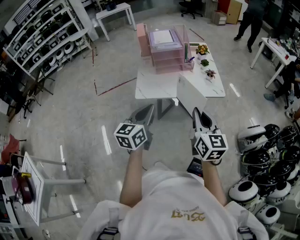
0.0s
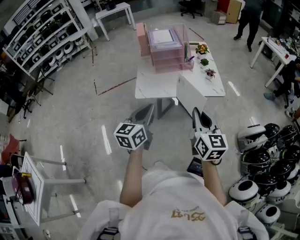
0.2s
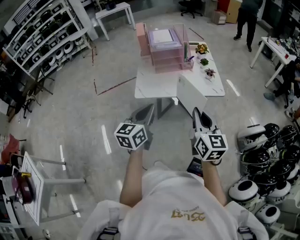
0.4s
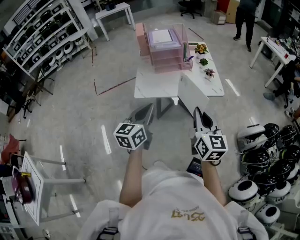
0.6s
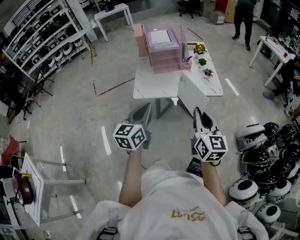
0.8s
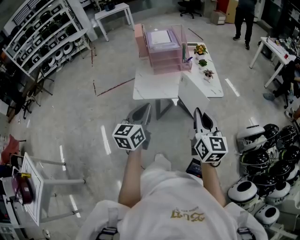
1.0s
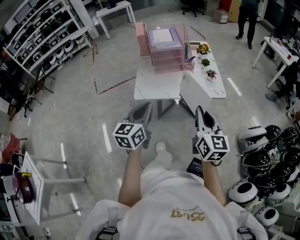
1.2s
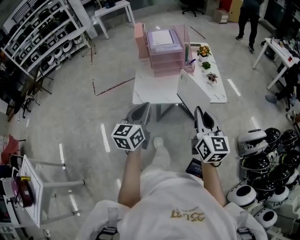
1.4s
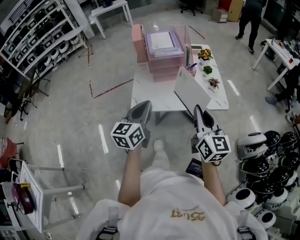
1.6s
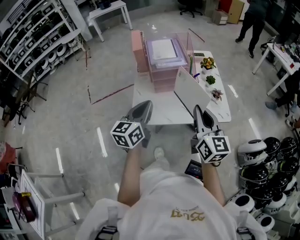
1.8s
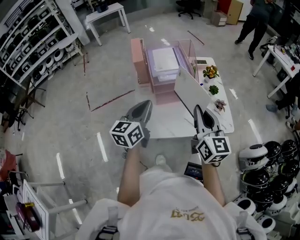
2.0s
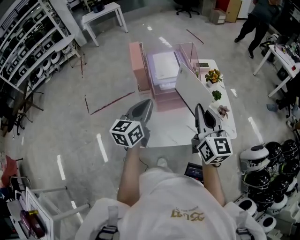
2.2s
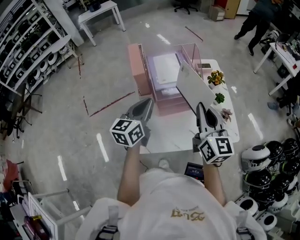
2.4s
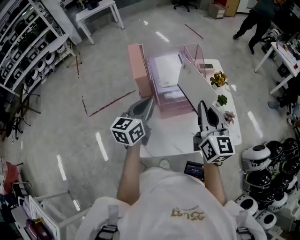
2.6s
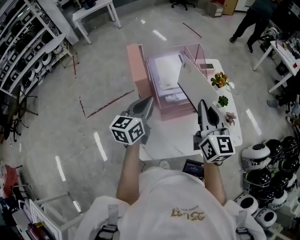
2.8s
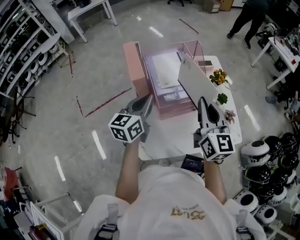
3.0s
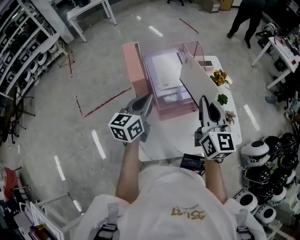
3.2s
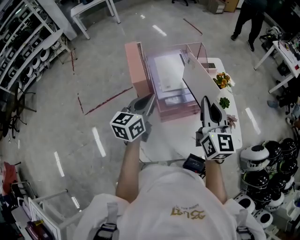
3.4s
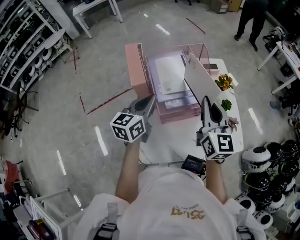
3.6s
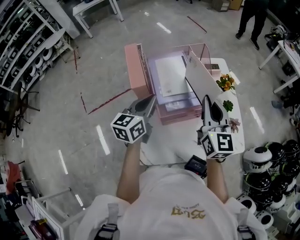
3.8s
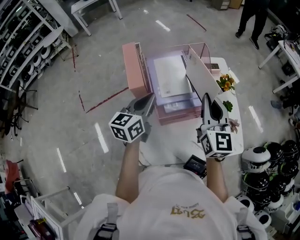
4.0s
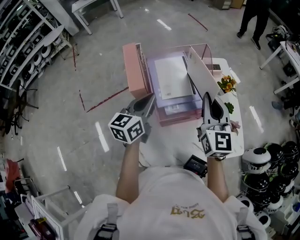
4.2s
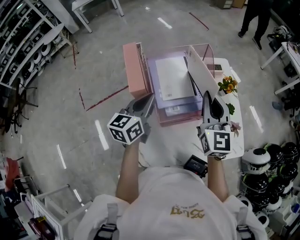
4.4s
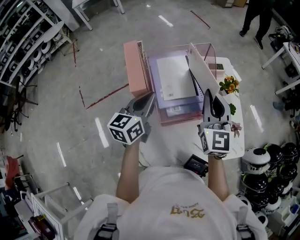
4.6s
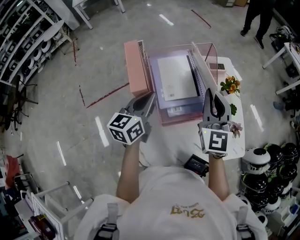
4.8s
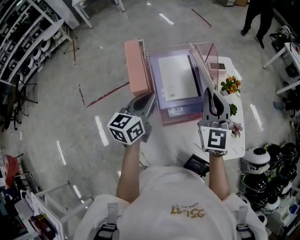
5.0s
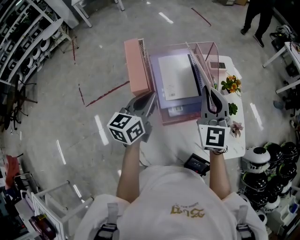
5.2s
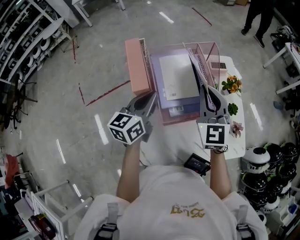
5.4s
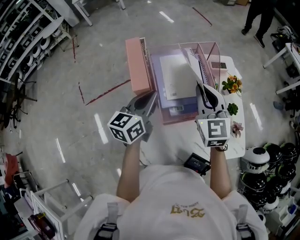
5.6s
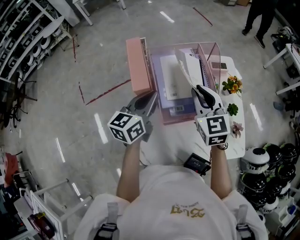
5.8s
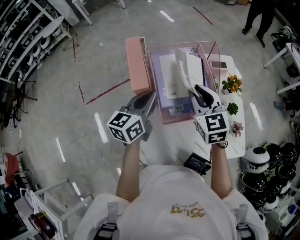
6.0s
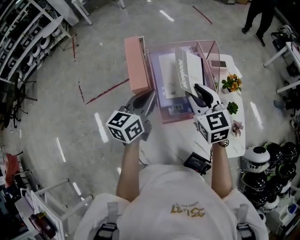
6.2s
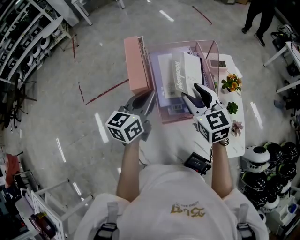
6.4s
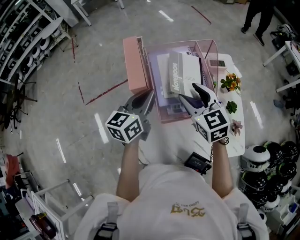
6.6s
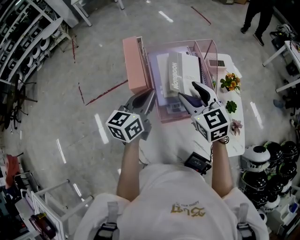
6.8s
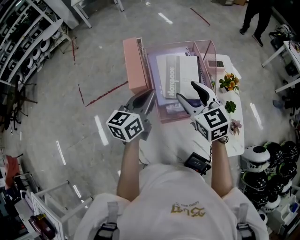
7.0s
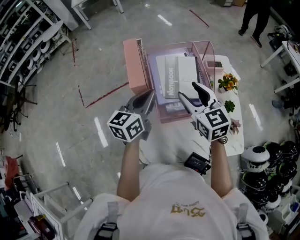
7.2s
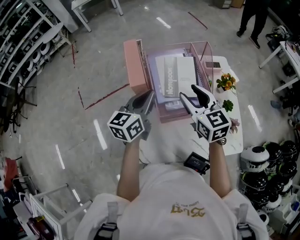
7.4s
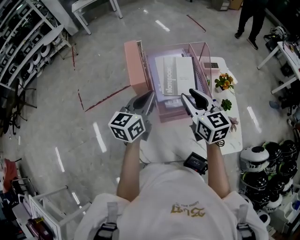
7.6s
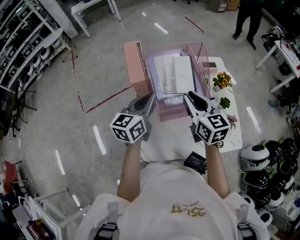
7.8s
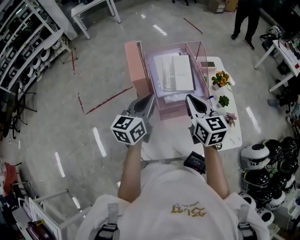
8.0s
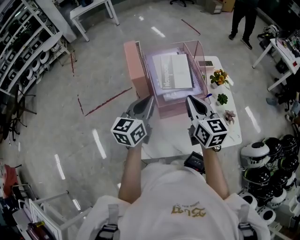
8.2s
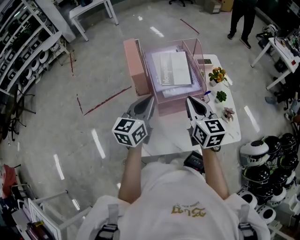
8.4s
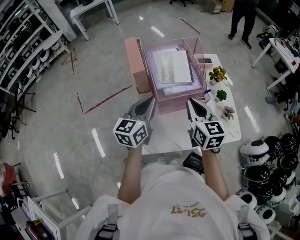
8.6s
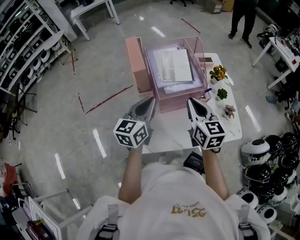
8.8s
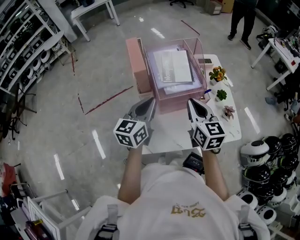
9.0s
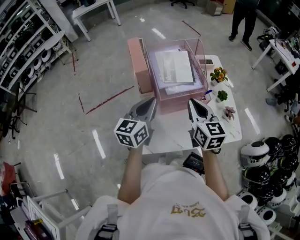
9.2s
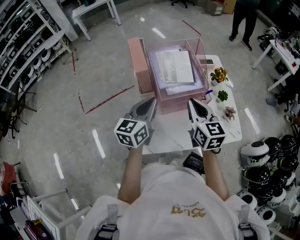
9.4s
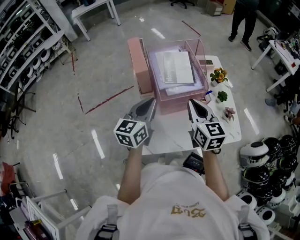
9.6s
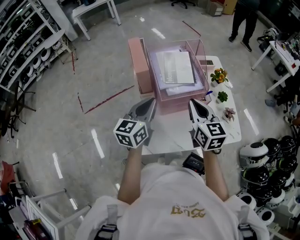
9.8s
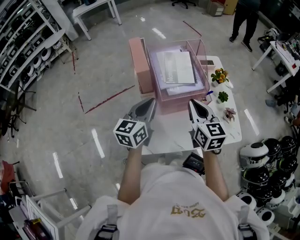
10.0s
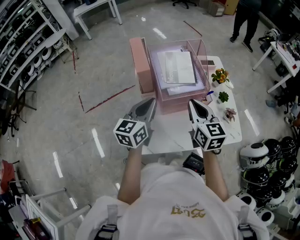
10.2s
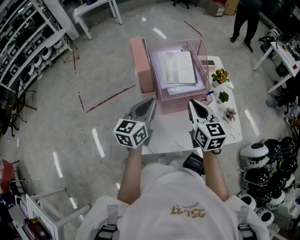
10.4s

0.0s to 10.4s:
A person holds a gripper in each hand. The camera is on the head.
0.0s to 1.4s: Both grippers move forward, roughly 5 cm.
1.4s to 3.0s: Both grippers are carried forward, about 40 cm.
3.0s to 4.4s: The left gripper is displaced forward by about 5 cm. The right gripper is displaced forward by about 10 cm.
4.4s to 6.0s: The right gripper heads to the left and downward, covering approximately 10 cm, and rotates roughly 30 degrees.
6.0s to 7.4s: The right gripper opens up.
7.4s to 9.0s: The two grippers go about 10 cm backward. The right gripper closes up.
9.0s to 10.4s: Both grippers stay about where they are.

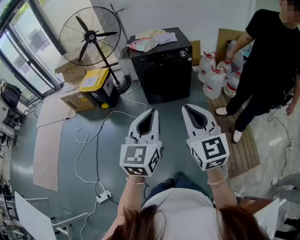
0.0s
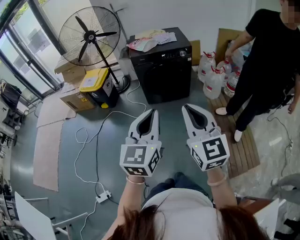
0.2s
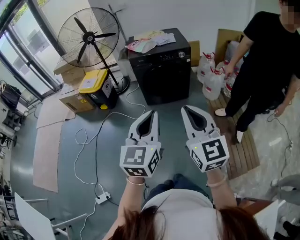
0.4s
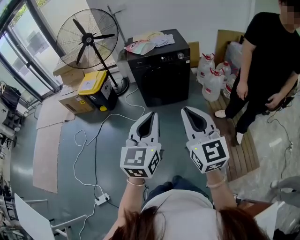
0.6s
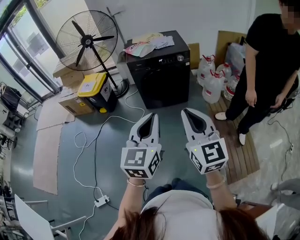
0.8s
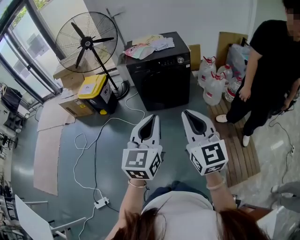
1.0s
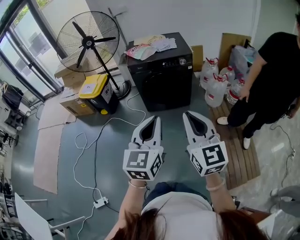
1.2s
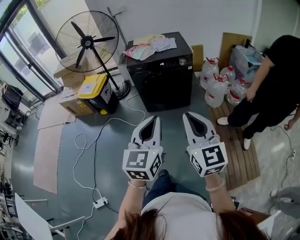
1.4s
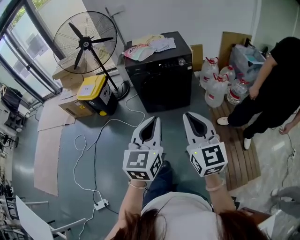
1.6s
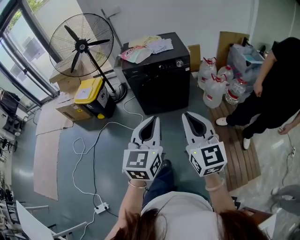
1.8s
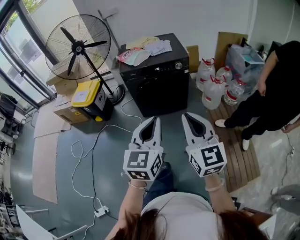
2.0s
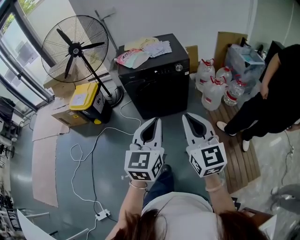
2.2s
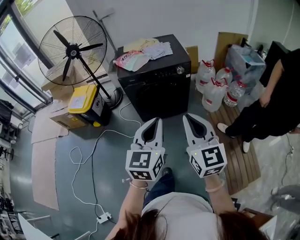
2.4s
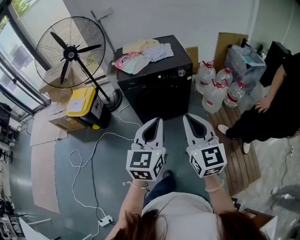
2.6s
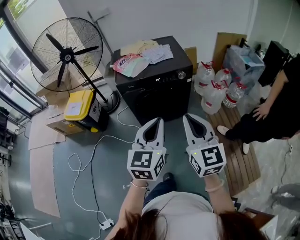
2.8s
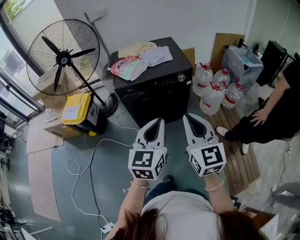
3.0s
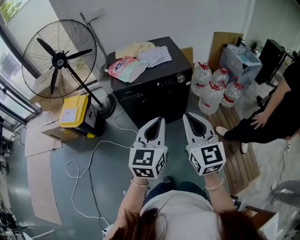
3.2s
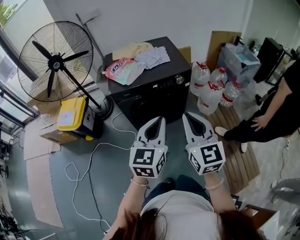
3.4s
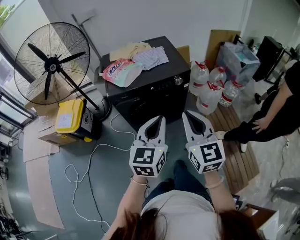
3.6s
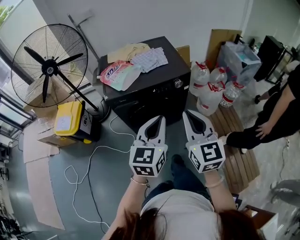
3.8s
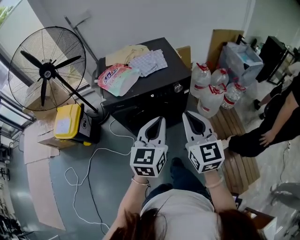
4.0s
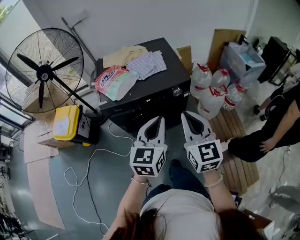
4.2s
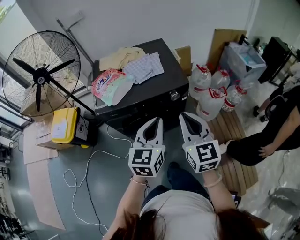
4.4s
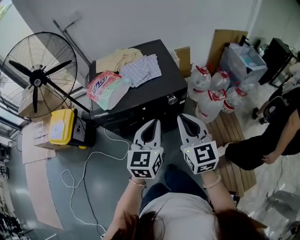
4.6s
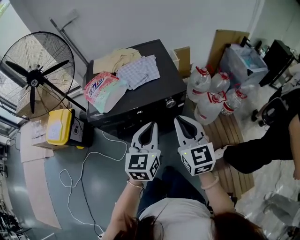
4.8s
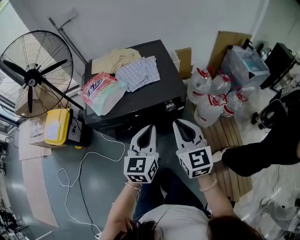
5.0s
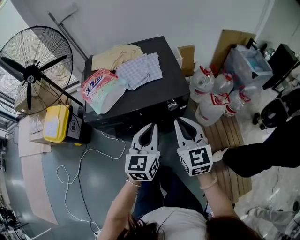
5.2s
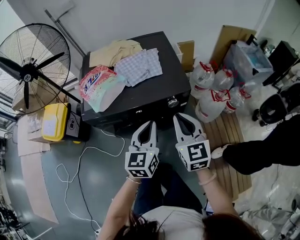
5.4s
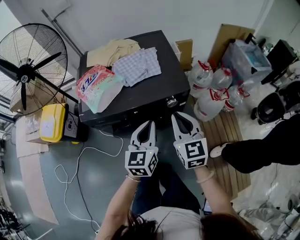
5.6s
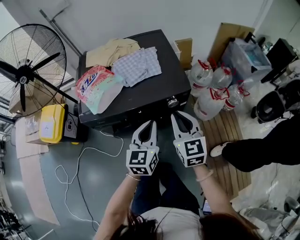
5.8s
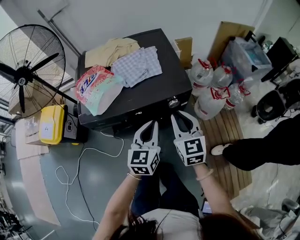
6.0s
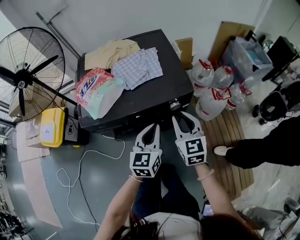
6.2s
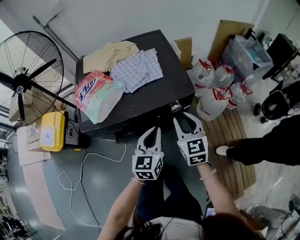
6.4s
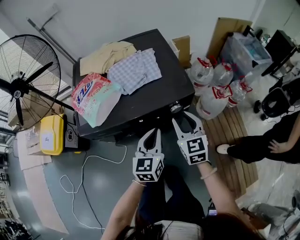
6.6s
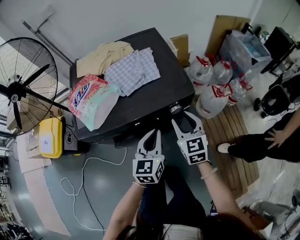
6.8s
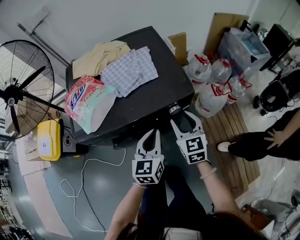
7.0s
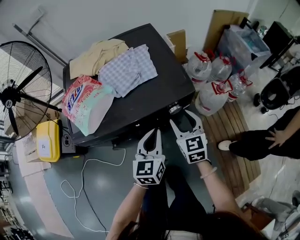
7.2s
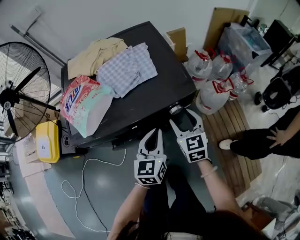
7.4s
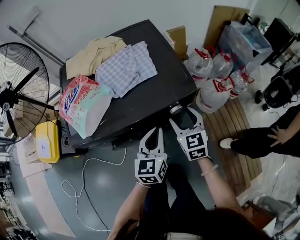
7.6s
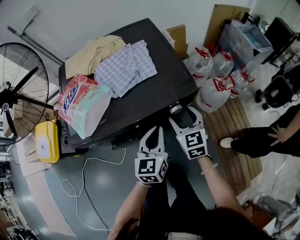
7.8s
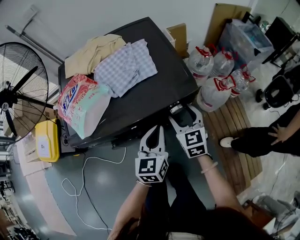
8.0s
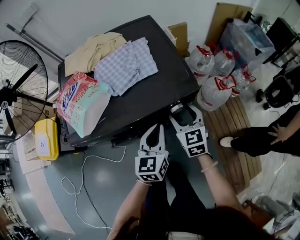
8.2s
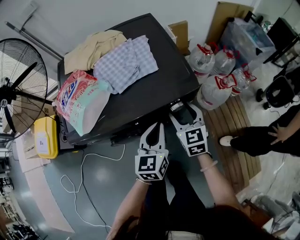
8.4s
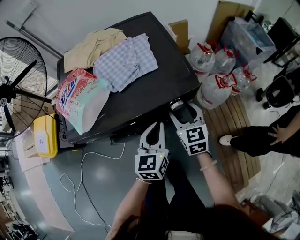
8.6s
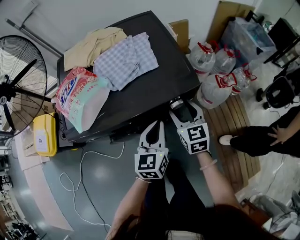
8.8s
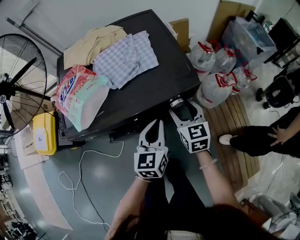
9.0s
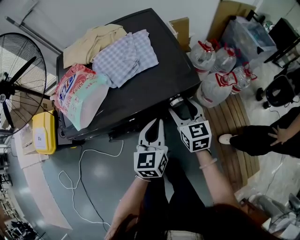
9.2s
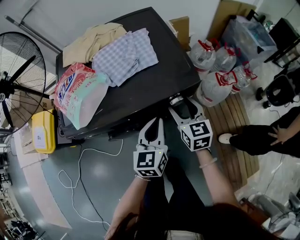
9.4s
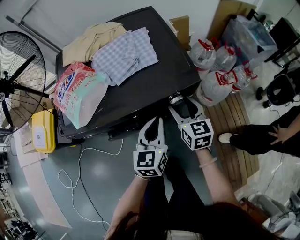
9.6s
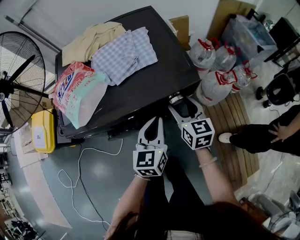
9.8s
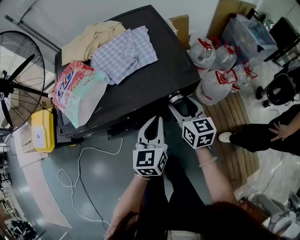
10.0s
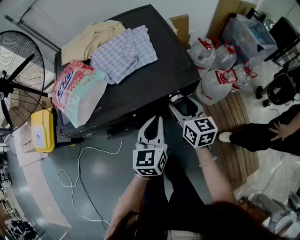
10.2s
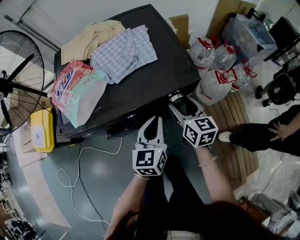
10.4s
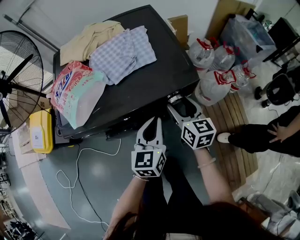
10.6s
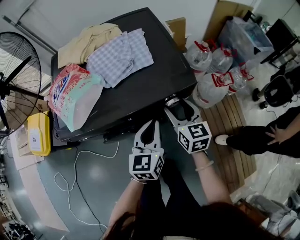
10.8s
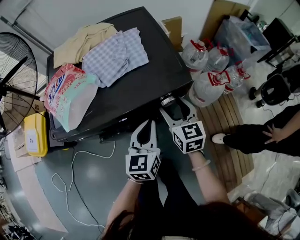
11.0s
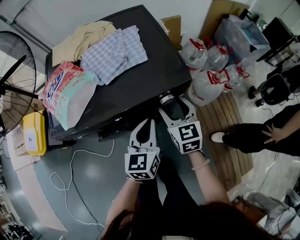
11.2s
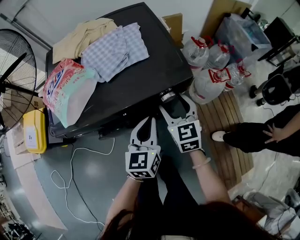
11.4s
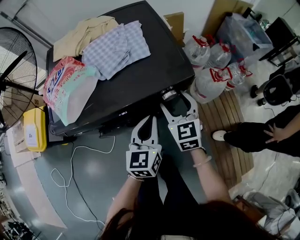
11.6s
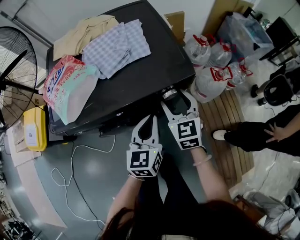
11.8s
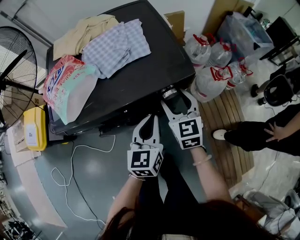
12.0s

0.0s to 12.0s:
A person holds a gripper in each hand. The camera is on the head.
0.0s to 1.6s: The grippers both shift forward and to the right by approximately 15 cm.
1.6s to 3.0s: Both grippers move forward, some 25 cm.
3.0s to 4.4s: Both grippers move forward, roughly 25 cm.
4.4s to 6.0s: The two grippers go about 20 cm downward and forward.
6.0s to 7.6s: Both grippers move downward and forward, roughly 10 cm. The right gripper opens.
7.6s to 9.0s: The grippers make only small movements.
9.0s to 10.4s: The grippers move only a little.
10.4s to 12.0s: The right gripper turns by approximately 30 degrees.

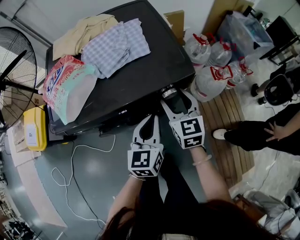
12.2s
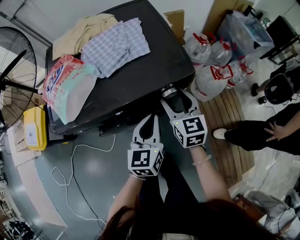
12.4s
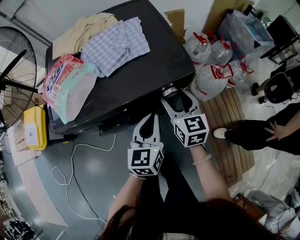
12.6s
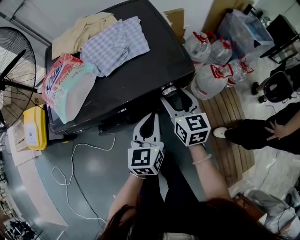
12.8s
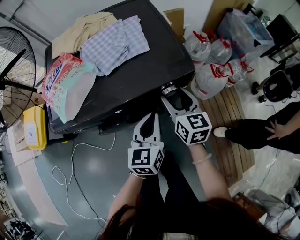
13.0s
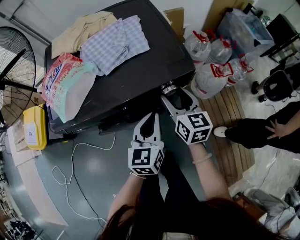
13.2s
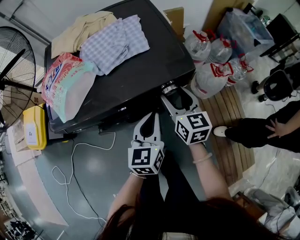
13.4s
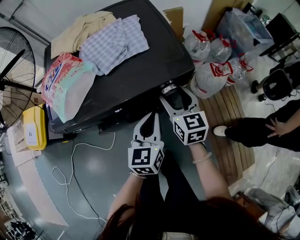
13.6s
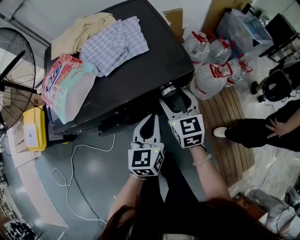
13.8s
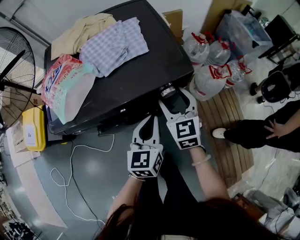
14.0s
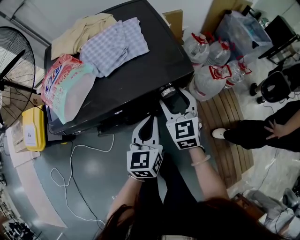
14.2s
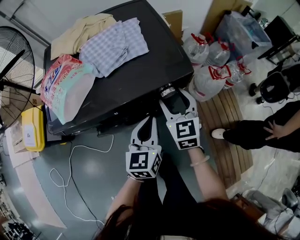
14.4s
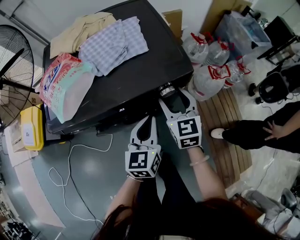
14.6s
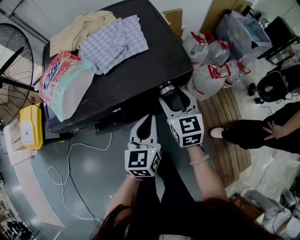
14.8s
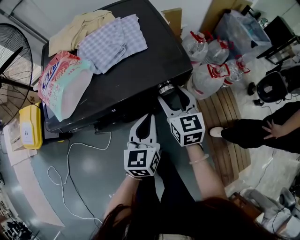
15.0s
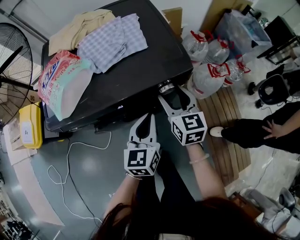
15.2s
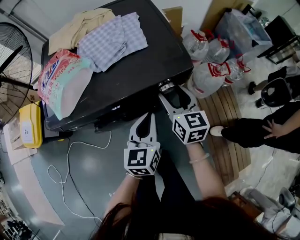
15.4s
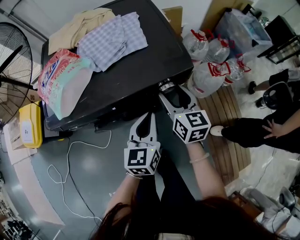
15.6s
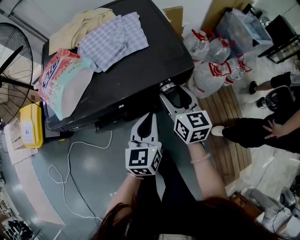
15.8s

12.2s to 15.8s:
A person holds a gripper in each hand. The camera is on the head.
12.2s to 14.0s: The grippers stay close to where they were, moving slightly.
14.0s to 15.8s: The right gripper changes its angle by some 20 degrees.
